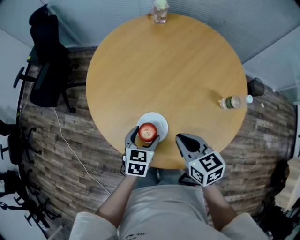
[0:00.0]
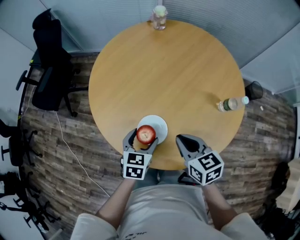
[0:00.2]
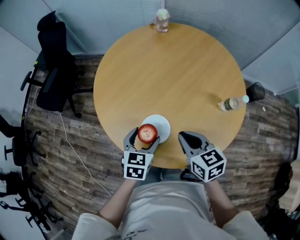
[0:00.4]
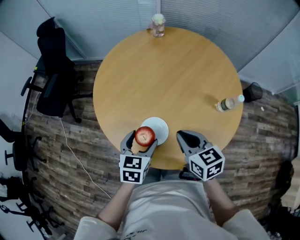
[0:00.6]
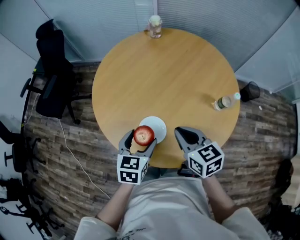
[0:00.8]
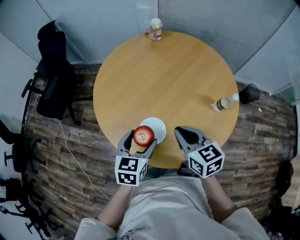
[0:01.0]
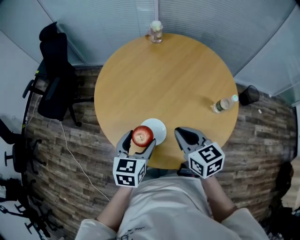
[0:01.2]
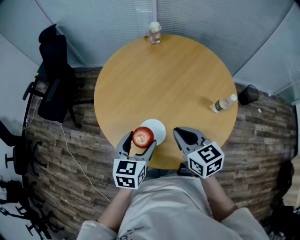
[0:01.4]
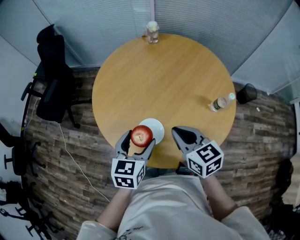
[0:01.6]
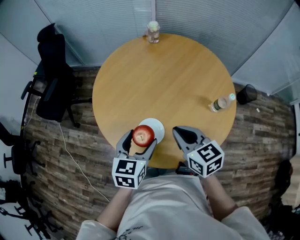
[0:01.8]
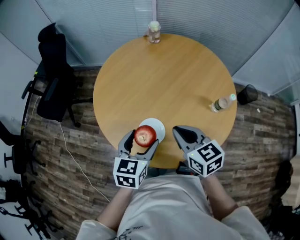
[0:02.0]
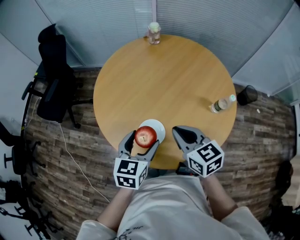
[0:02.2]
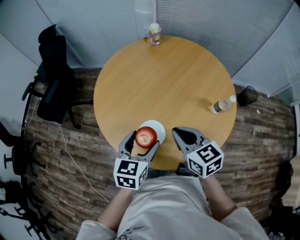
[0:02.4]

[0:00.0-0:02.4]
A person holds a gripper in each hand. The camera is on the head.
0:00.0 to 0:01.2: The left gripper goes roughly 15 cm upward; the right gripper moves upward, approximately 5 cm.
0:01.2 to 0:02.4: There are only small adjustments of the grippers.

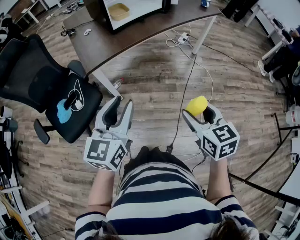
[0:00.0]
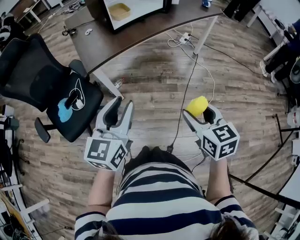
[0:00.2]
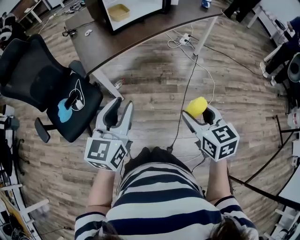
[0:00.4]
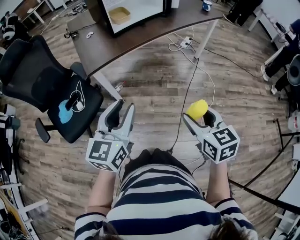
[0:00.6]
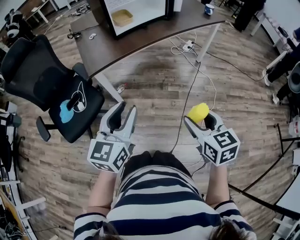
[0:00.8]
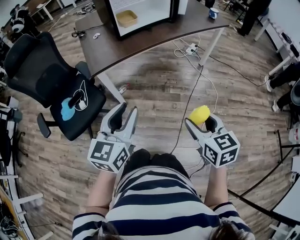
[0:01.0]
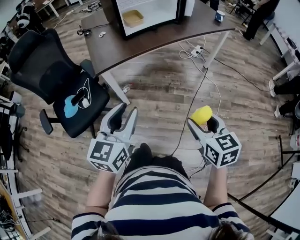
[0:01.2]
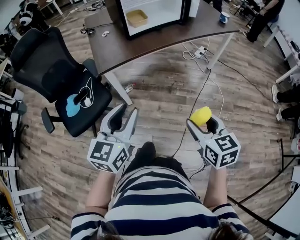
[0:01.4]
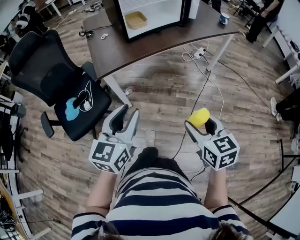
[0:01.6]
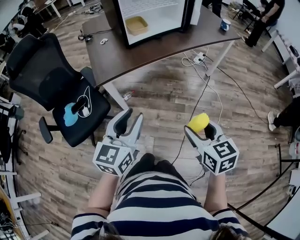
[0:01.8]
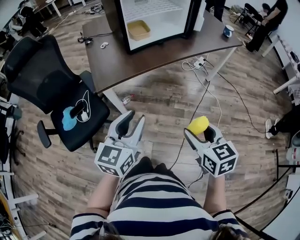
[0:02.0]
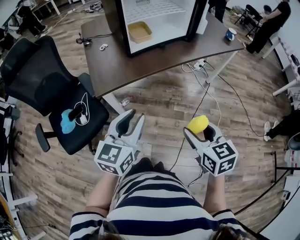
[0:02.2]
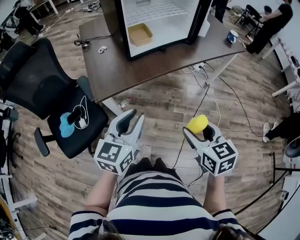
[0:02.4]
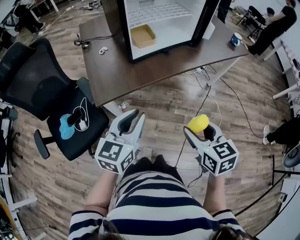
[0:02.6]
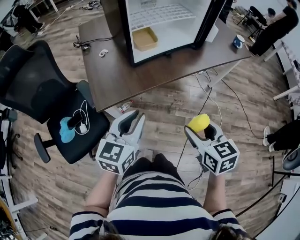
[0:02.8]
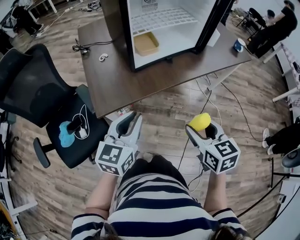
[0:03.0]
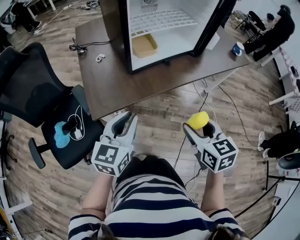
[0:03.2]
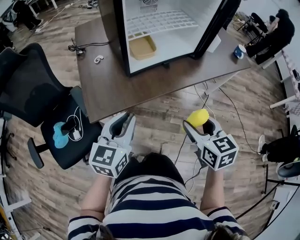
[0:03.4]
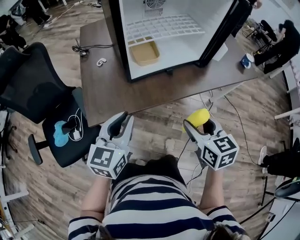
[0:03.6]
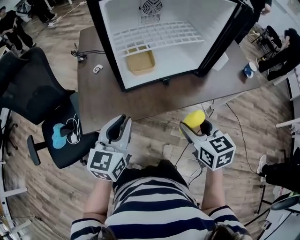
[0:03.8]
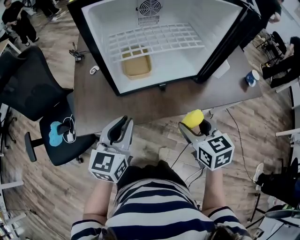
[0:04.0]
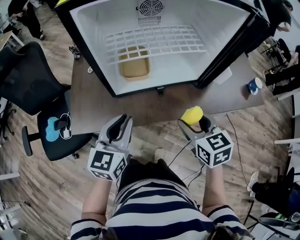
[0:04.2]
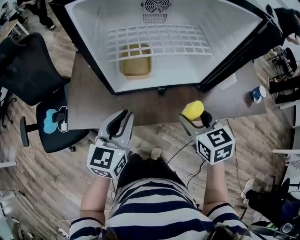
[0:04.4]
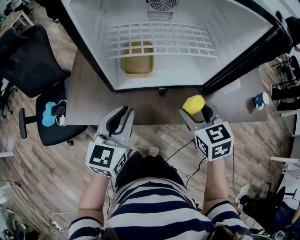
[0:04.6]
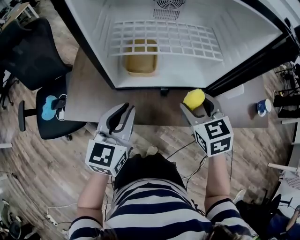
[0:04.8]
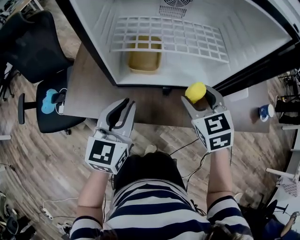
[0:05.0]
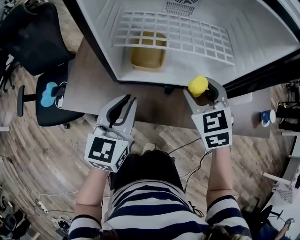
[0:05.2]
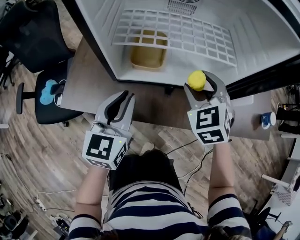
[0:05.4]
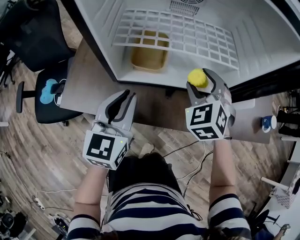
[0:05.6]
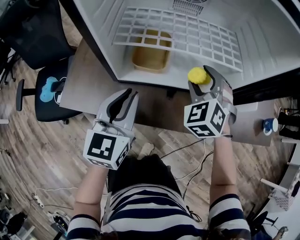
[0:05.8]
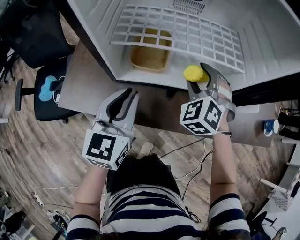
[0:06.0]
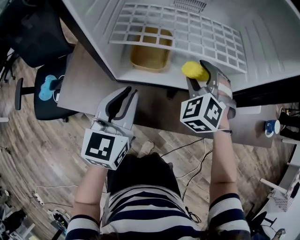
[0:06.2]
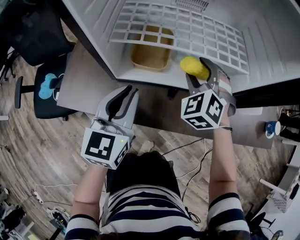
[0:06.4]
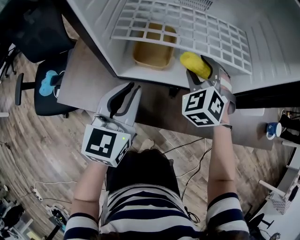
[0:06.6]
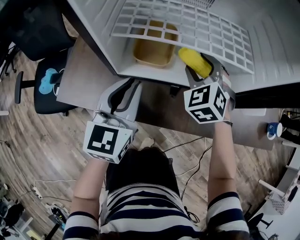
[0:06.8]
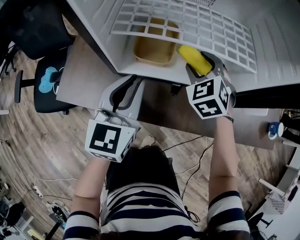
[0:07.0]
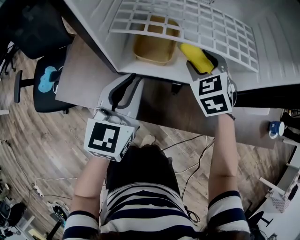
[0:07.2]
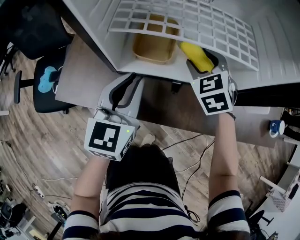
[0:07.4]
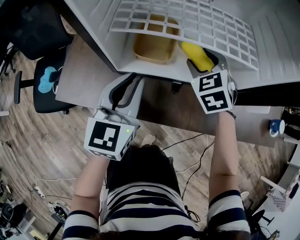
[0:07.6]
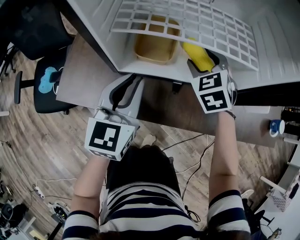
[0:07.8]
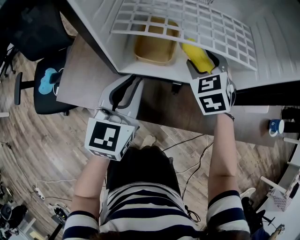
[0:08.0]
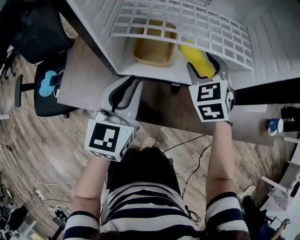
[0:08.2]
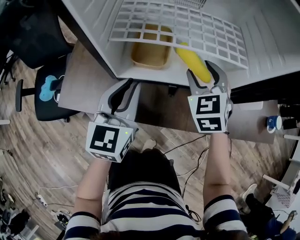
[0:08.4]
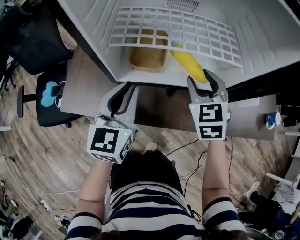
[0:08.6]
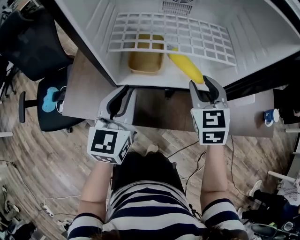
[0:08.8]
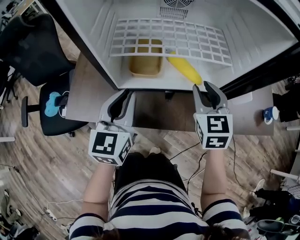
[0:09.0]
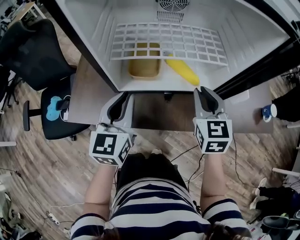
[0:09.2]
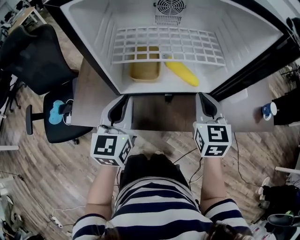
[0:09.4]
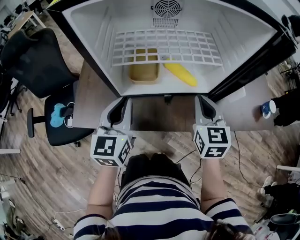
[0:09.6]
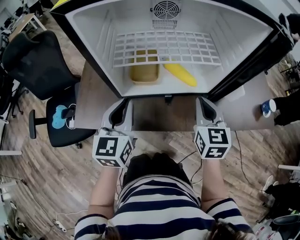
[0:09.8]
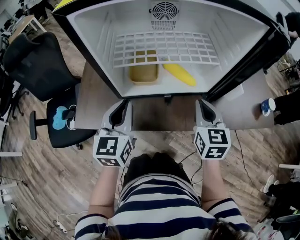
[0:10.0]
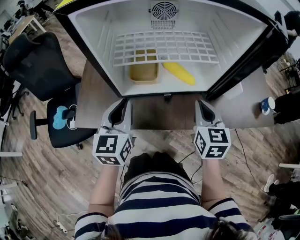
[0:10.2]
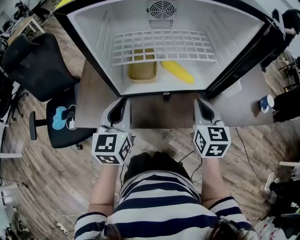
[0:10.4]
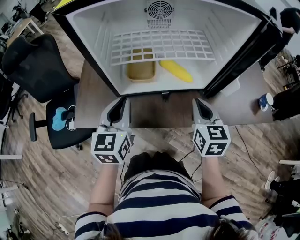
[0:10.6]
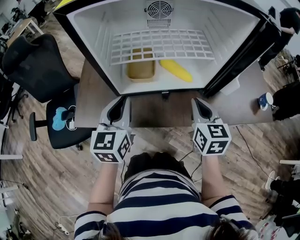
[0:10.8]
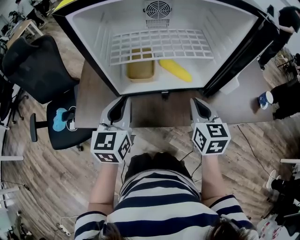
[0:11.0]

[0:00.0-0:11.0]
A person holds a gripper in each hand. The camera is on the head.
0:00.0 to 0:01.6: There are only small adjustments of the grippers.
0:01.6 to 0:03.2: The two grippers go roughly 30 cm forward.
0:03.2 to 0:04.8: The right gripper shifts about 30 cm forward, and swivels roughly 30 degrees. Meanwhile the left gripper travels forward and to the right by some 25 cm, and turns by roughly 30 degrees.
0:04.8 to 0:06.2: The left gripper heads forward, covering roughly 5 cm. Meanwhile the right gripper travels forward by approximately 15 cm, and rotates around the line of its fingers by about 50 degrees, counterclockwise from behind.
0:06.2 to 0:07.8: The right gripper rotates some 20 degrees.
0:07.8 to 0:09.4: The right gripper shifts about 15 cm backward, upward and to the right, turns by approximately 40 degrees, and closes. Meanwhile the left gripper changes place by some 5 cm.
0:09.4 to 0:11.0: The grippers stay close to where they were, moving slightly.

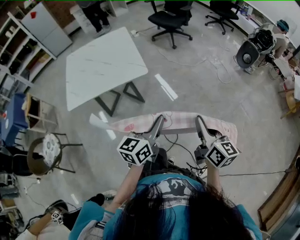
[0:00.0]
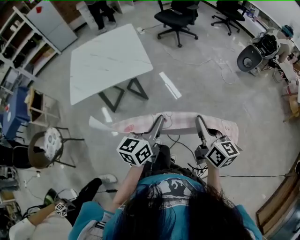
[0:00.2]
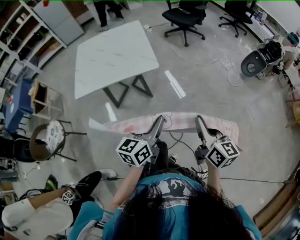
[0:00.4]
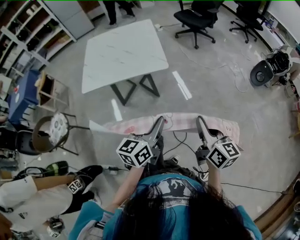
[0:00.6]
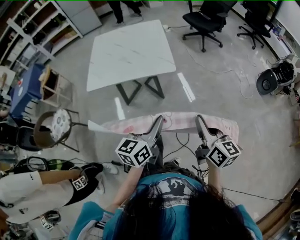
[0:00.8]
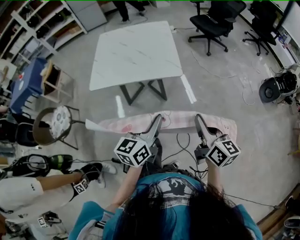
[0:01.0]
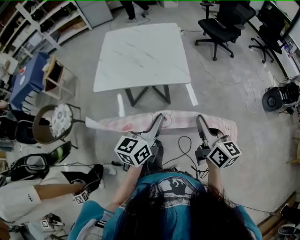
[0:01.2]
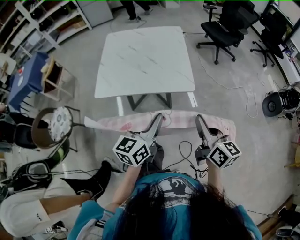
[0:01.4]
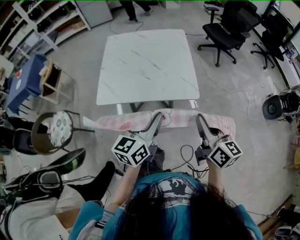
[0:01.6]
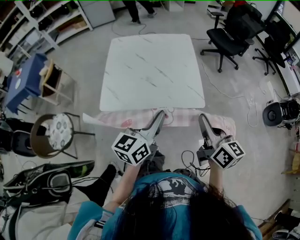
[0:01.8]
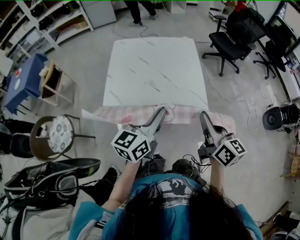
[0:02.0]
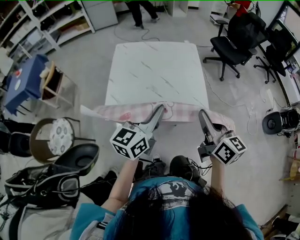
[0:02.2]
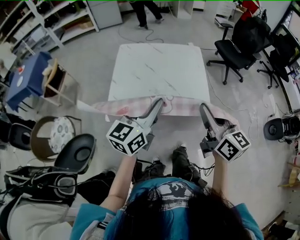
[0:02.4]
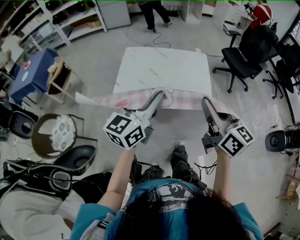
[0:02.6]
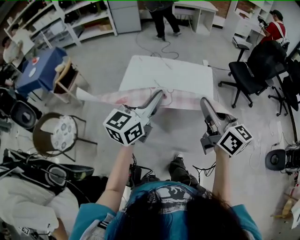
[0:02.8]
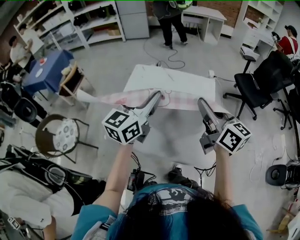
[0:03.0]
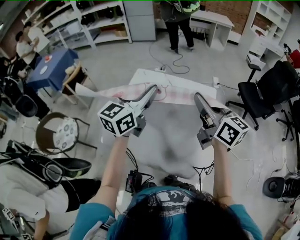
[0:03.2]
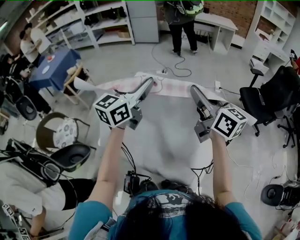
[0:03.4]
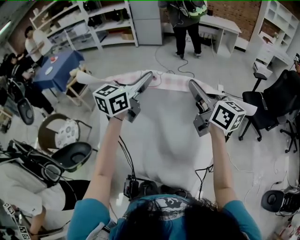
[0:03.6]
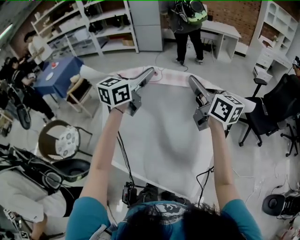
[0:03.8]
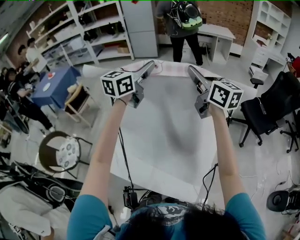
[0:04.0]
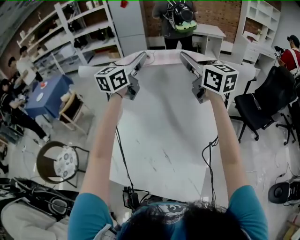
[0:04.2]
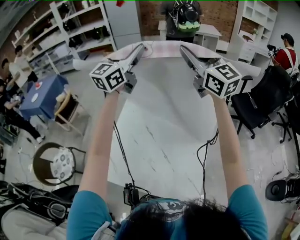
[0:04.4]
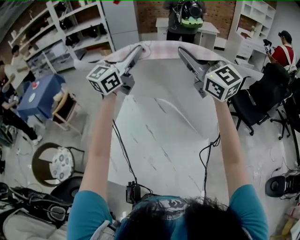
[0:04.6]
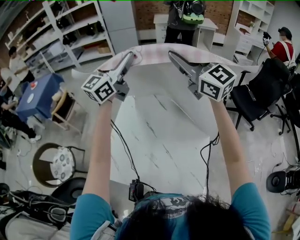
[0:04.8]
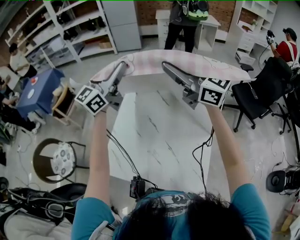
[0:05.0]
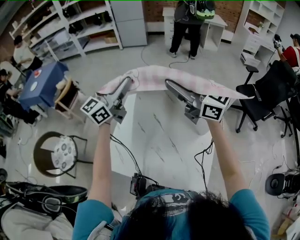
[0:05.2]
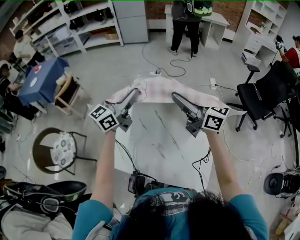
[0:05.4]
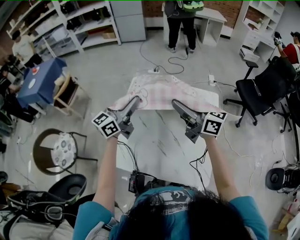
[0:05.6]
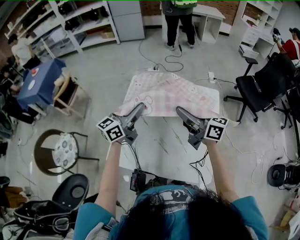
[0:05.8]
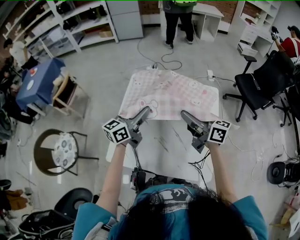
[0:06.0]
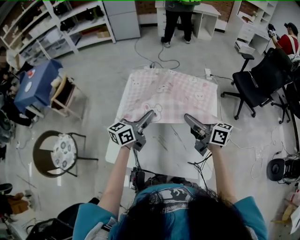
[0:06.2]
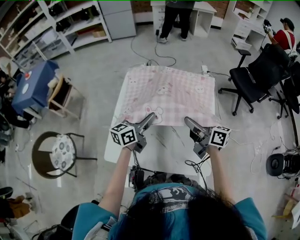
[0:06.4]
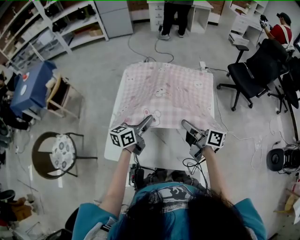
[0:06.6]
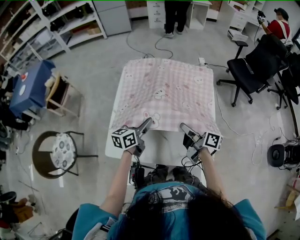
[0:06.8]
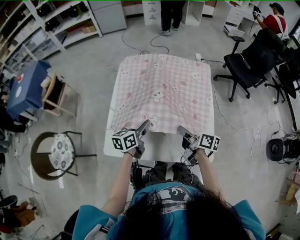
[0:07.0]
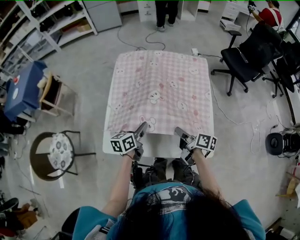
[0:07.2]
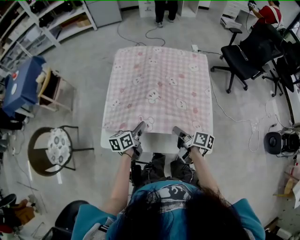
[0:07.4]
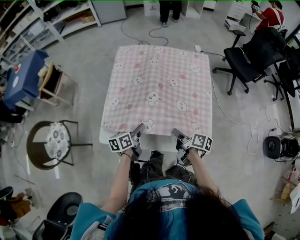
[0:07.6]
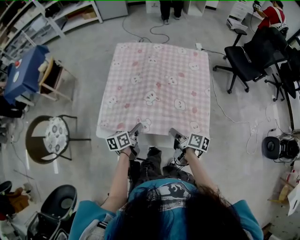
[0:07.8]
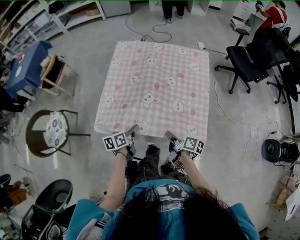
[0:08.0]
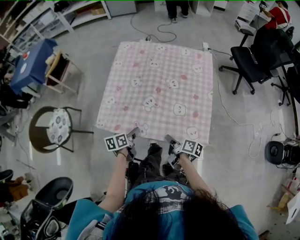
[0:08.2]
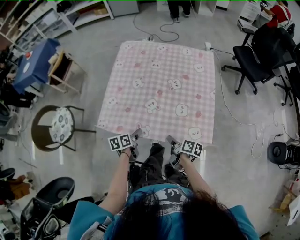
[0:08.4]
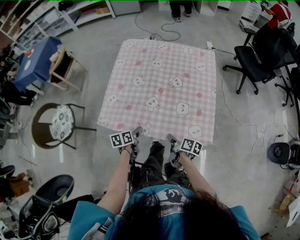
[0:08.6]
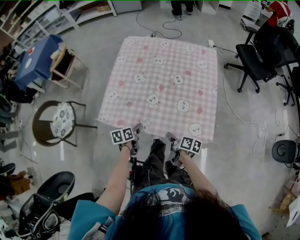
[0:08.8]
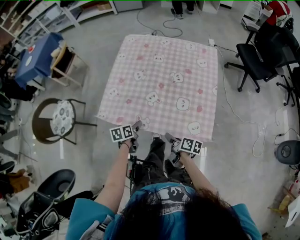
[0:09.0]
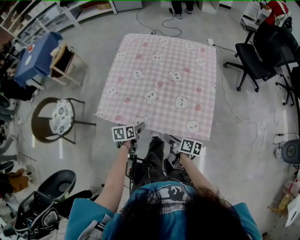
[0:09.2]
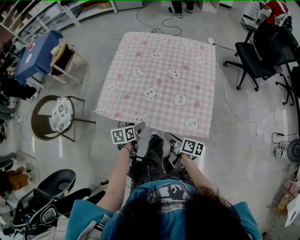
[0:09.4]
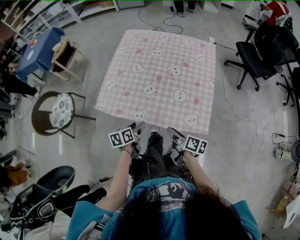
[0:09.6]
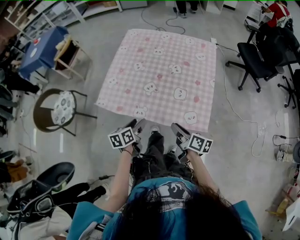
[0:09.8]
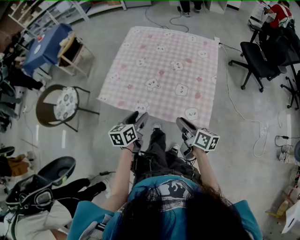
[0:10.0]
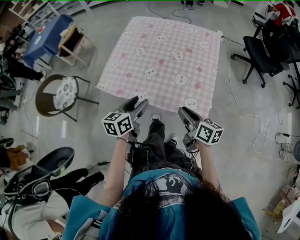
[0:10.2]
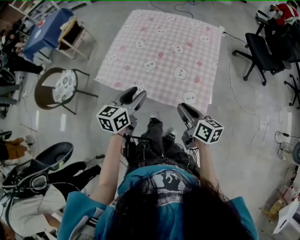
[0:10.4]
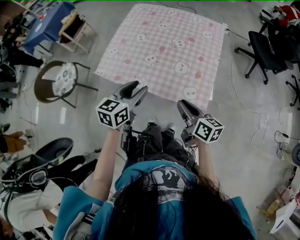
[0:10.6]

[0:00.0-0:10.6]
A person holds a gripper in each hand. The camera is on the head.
0:00.0 to 0:01.6: Both grippers travel together to the left and forward, about 25 cm. The right gripper turns by approximately 20 degrees.
0:01.6 to 0:03.0: The left gripper heads forward and upward, covering approximately 30 cm; the right gripper travels forward by some 30 cm, and turns by about 30 degrees.
0:03.0 to 0:04.6: The two grippers go about 30 cm forward and upward. The left gripper changes its angle by approximately 20 degrees. Meanwhile the right gripper rolls counterclockwise, seen from behind, by roughly 40 degrees.
0:04.6 to 0:06.0: The two grippers go about 30 cm downward and backward. The right gripper rotates around the line of its fingers by some 60 degrees, clockwise from behind; the left gripper rotates approximately 40 degrees.
0:06.0 to 0:07.6: The grippers both shift downward and backward by some 30 cm. The left gripper changes its angle by about 40 degrees, while the right gripper rotates approximately 50 degrees.
0:07.6 to 0:09.0: The right gripper heads backward and downward, covering roughly 10 cm, and opens up. Meanwhile the left gripper heads downward and backward, covering roughly 10 cm, and turns by roughly 20 degrees.
0:09.0 to 0:10.6: Both grippers travel together upward and to the right, roughly 20 cm. The left gripper changes its angle by approximately 40 degrees. Meanwhile the right gripper turns by roughly 30 degrees.
